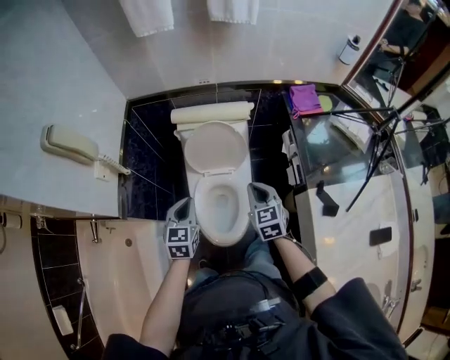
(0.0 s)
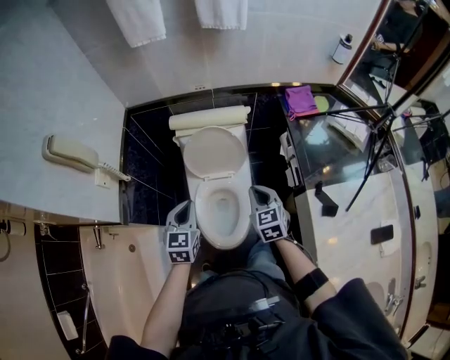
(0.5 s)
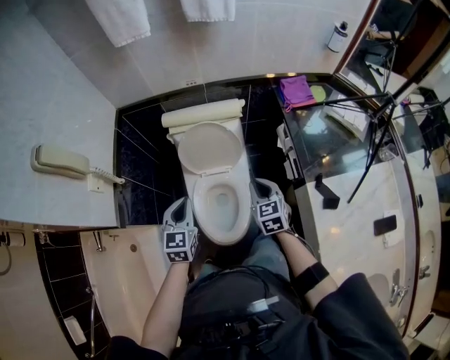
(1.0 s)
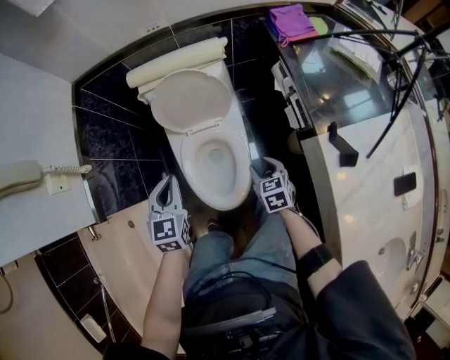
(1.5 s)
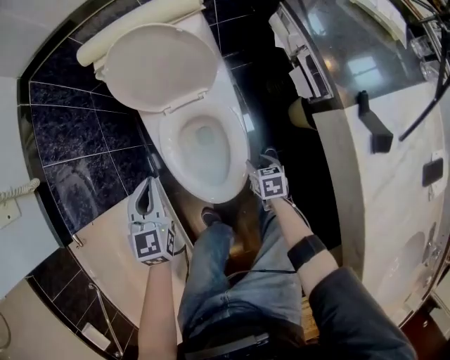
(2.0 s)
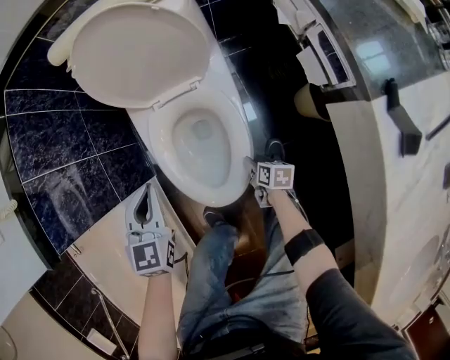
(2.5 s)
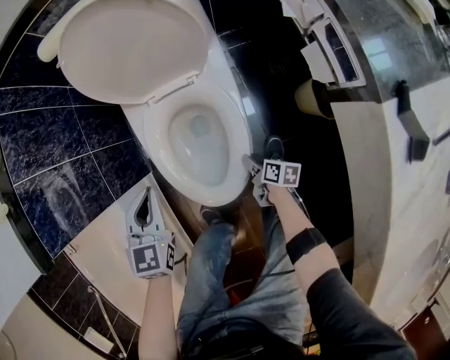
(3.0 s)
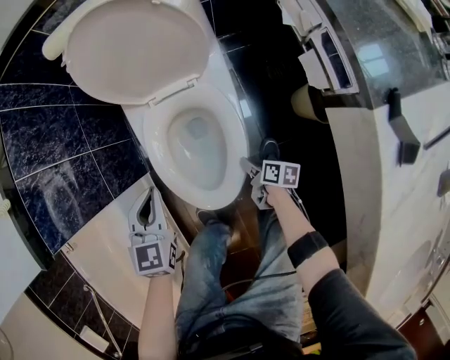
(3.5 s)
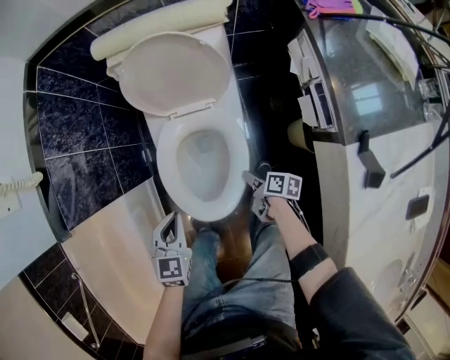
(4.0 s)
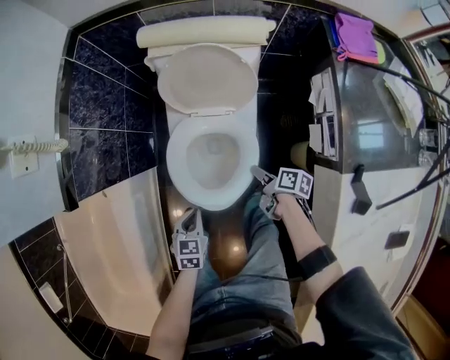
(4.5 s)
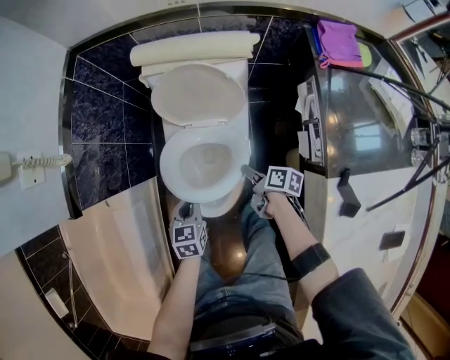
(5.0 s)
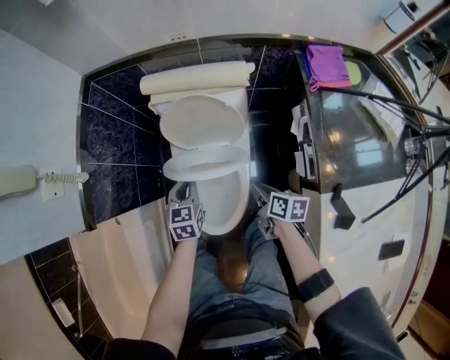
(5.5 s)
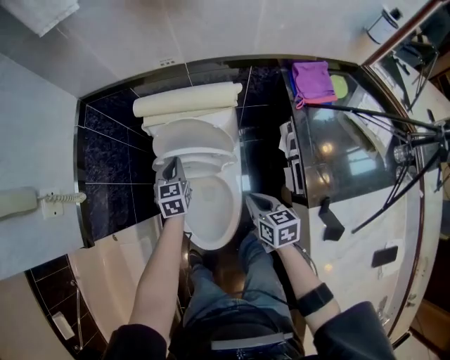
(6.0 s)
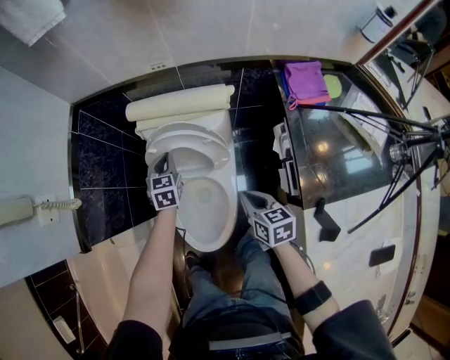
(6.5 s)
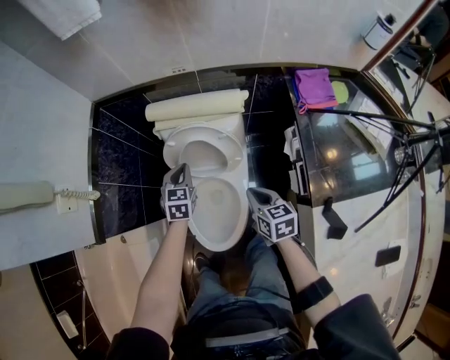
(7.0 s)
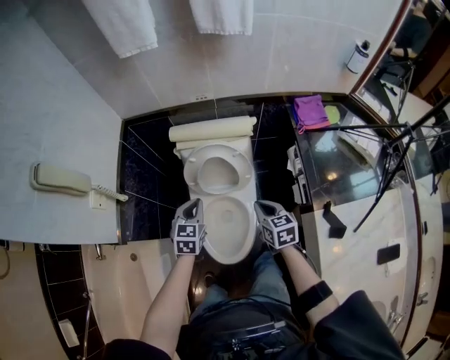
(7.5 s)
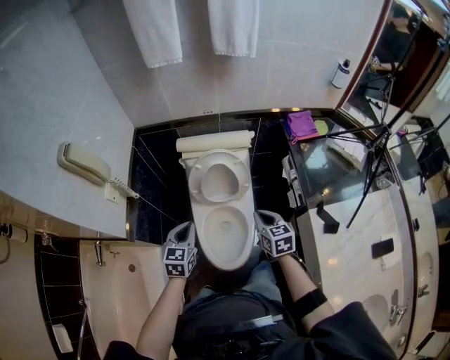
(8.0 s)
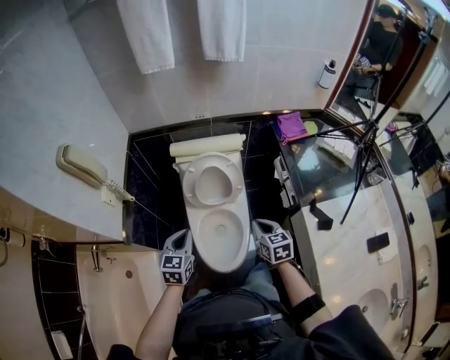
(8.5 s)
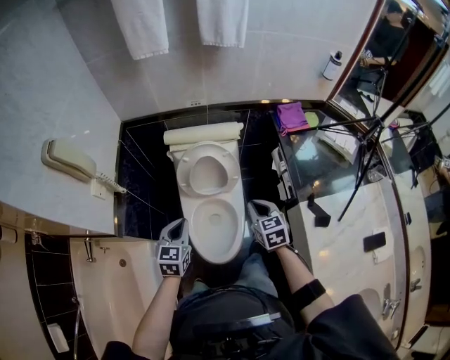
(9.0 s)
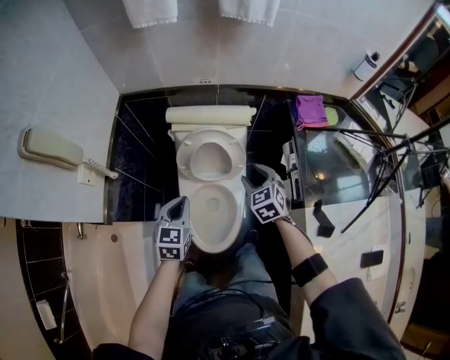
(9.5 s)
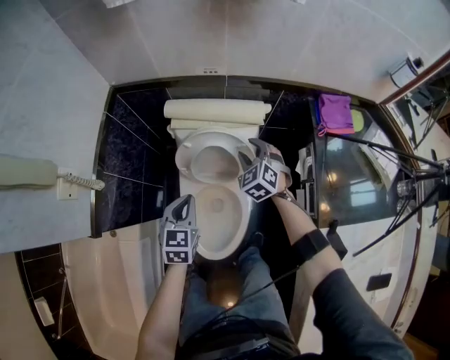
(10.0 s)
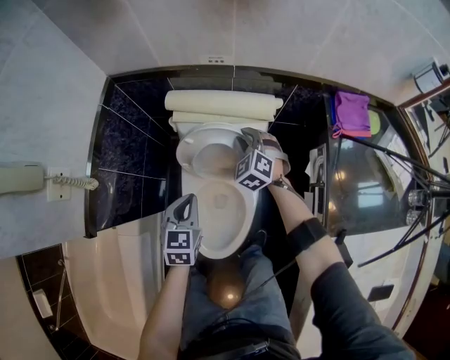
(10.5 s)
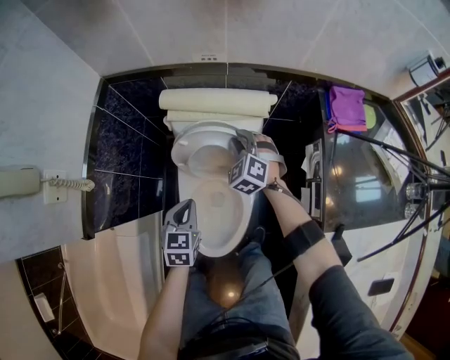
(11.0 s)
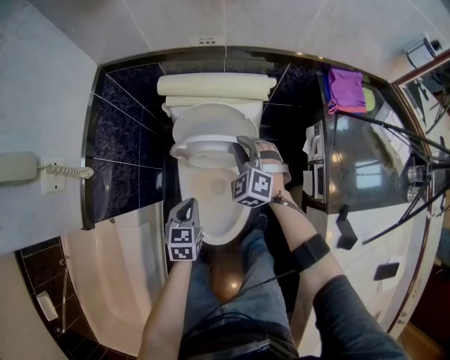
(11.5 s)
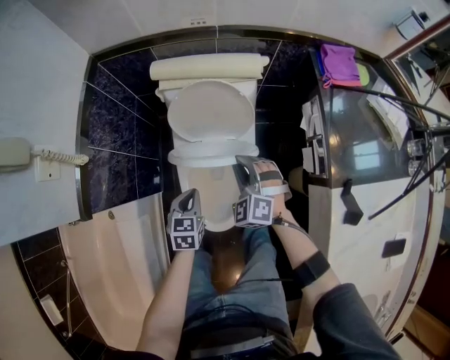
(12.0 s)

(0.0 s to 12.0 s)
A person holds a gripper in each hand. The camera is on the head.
0.0 s - 2.0 s: The right gripper shifts about 50 cm downward, turns by some 40 degrees, and opens its fingers, while the left gripper goes approximately 20 cm downward.
2.0 s - 4.0 s: The left gripper travels backward by some 10 cm. The right gripper goes downward and returns, some 10 cm each way, and swivels some 40 degrees.
4.0 s - 6.0 s: The left gripper moves forward and to the right, roughly 30 cm; the right gripper heads upward and forward, covering about 30 cm, rolls counterclockwise, seen from behind, by roughly 50 degrees, and closes up.
6.0 s - 8.0 s: The left gripper travels backward, upward and to the left by about 30 cm, while the right gripper goes approximately 15 cm upward, to the left and backward.
8.0 s - 10.0 s: The right gripper is displaced forward by some 30 cm, rotates around the line of its fingers by some 50 degrees, counterclockwise from behind, and opens up. Meanwhile the left gripper heads forward, downward and to the right, covering approximately 15 cm.
10.0 s - 12.0 s: The left gripper is displaced downward and backward by roughly 15 cm. The right gripper travels backward by about 15 cm, and closes its fingers.

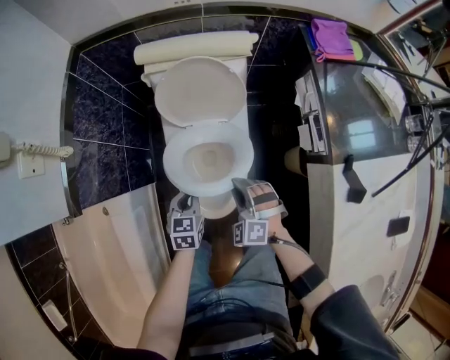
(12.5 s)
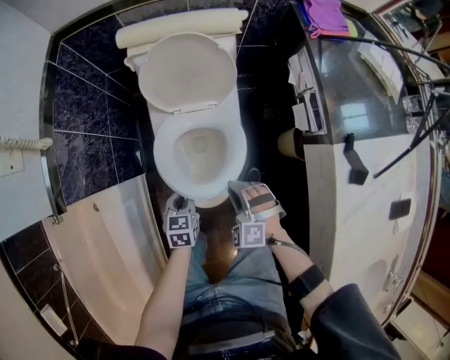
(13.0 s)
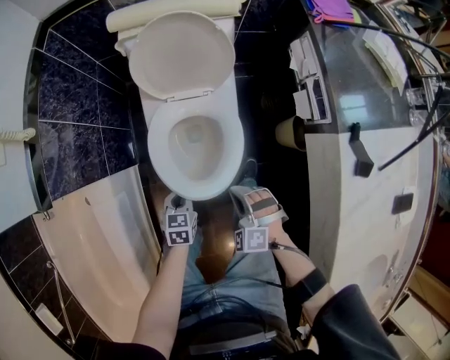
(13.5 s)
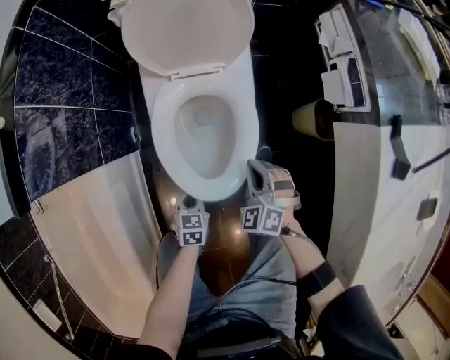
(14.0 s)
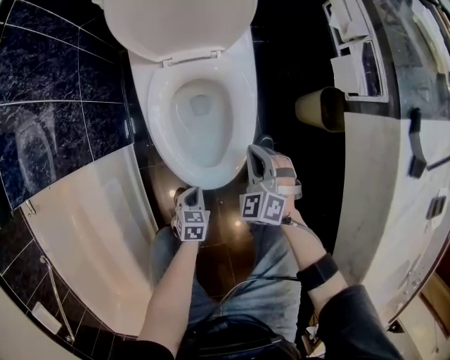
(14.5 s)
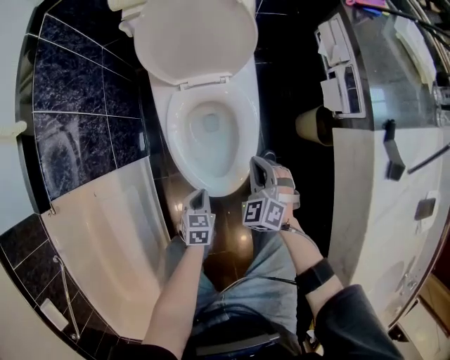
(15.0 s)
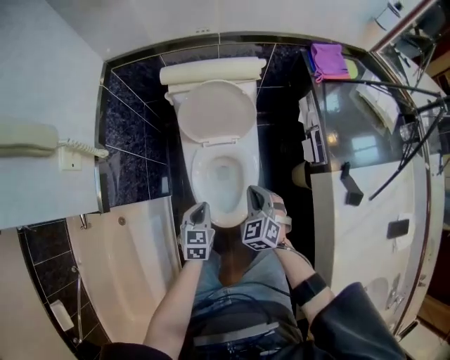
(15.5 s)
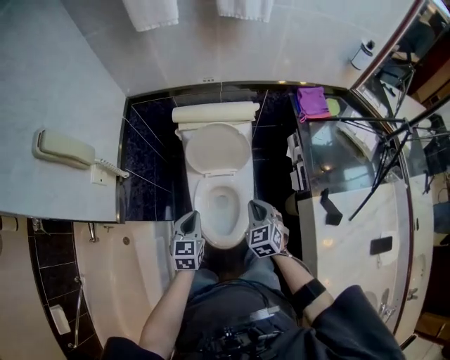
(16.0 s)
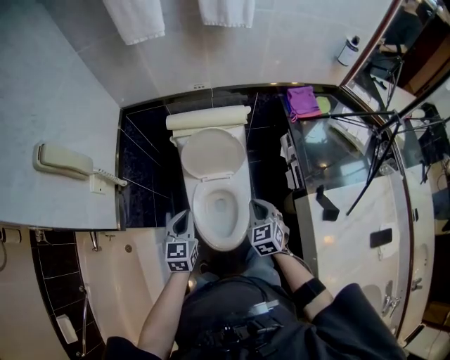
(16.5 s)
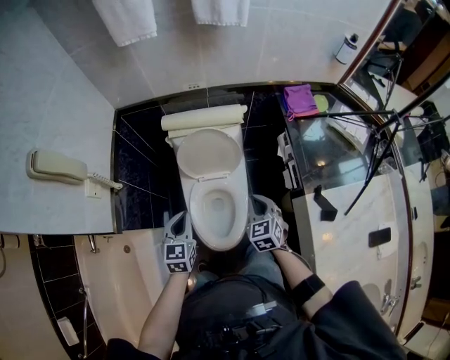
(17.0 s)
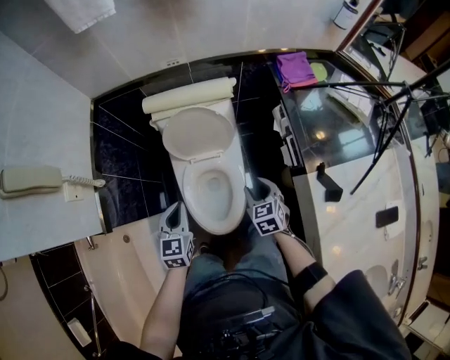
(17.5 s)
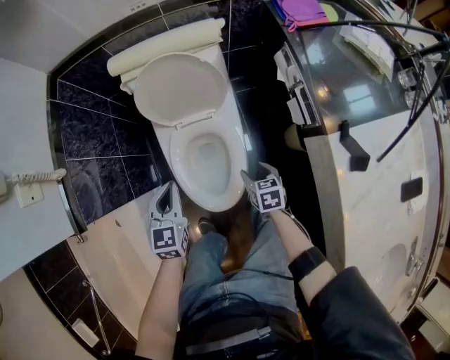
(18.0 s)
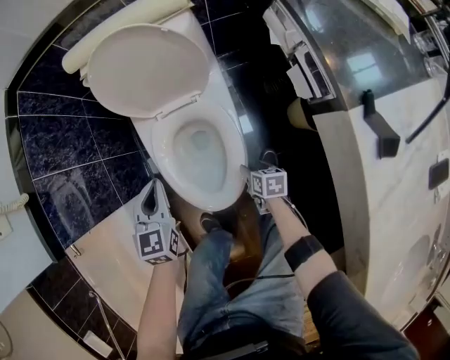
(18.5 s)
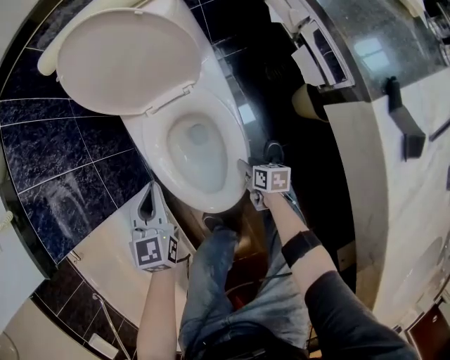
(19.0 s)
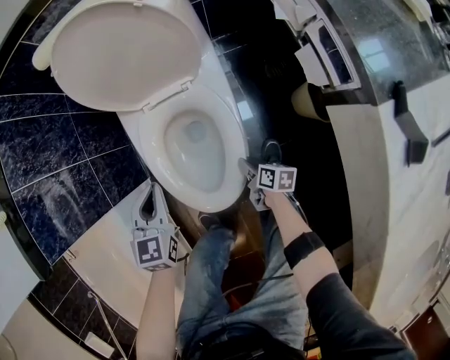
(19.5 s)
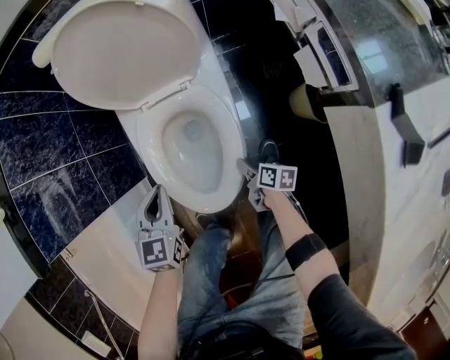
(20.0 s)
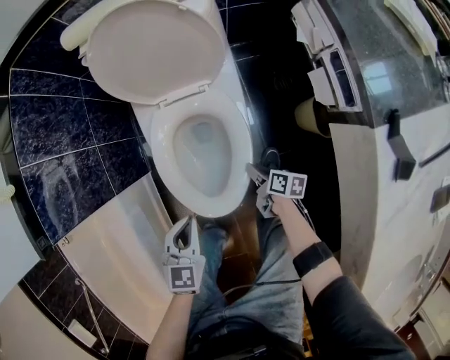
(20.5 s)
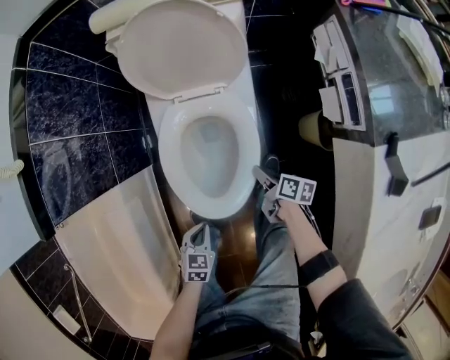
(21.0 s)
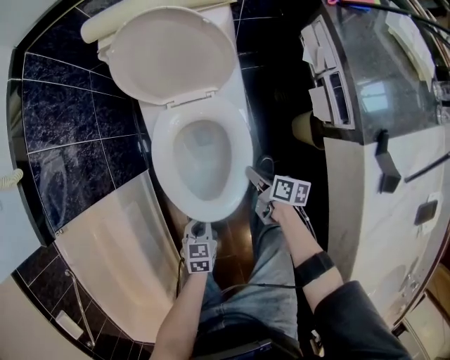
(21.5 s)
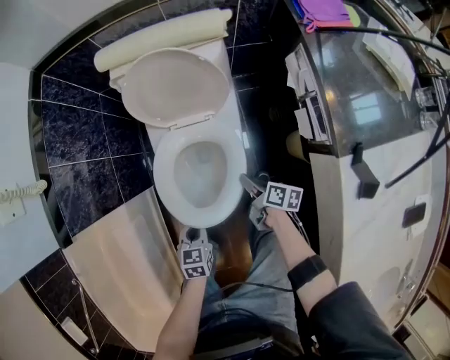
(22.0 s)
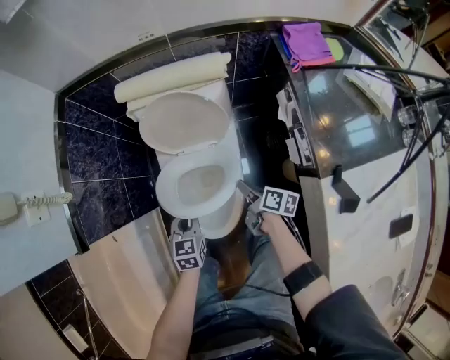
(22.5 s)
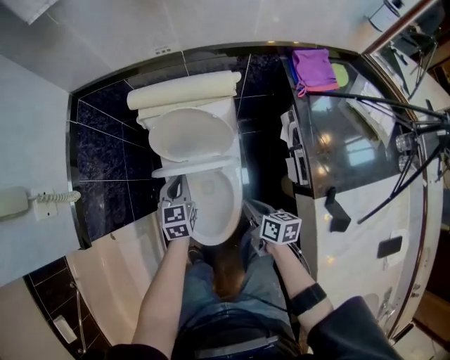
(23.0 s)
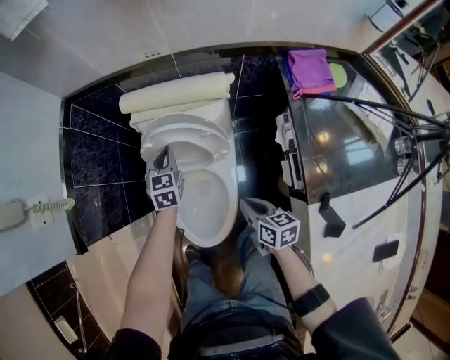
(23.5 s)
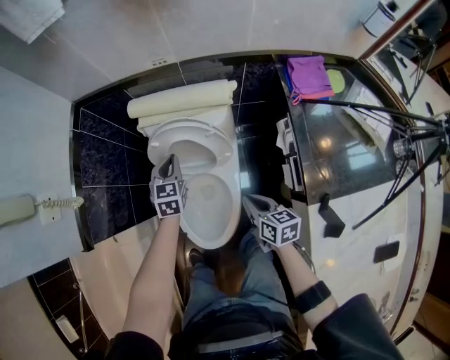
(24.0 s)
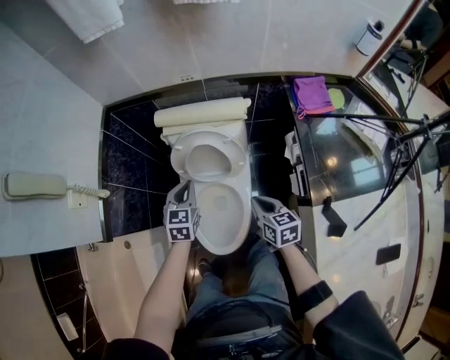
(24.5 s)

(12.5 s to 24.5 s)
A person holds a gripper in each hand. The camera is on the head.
12.5 s - 14.5 s: The right gripper moves downward, approximately 20 cm; the left gripper moves downward and backward, approximately 35 cm, and changes its angle by about 20 degrees.
14.5 s - 16.5 s: The grippers both shift upward by roughly 50 cm. The left gripper tilts its fingers roughly 30 degrees upward. Meanwhile the right gripper changes its angle by some 30 degrees.
16.5 s - 18.5 s: The right gripper shifts approximately 50 cm downward, twists approximately 50 degrees clockwise, seen from behind, and opens its fingers. Meanwhile the left gripper heads downward, covering about 25 cm.
18.5 s - 20.5 s: The right gripper swivels about 20 degrees, and closes, while the left gripper moves backward, some 15 cm.
20.5 s - 22.5 s: The right gripper travels upward and forward by about 25 cm, while the left gripper heads forward and upward, covering approximately 15 cm.
22.5 s - 24.5 s: The left gripper moves upward and forward, some 20 cm; the right gripper goes roughly 15 cm upward, and rotates around the line of its fingers by roughly 50 degrees, counterclockwise from behind.

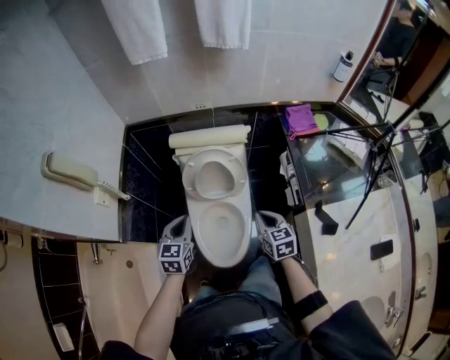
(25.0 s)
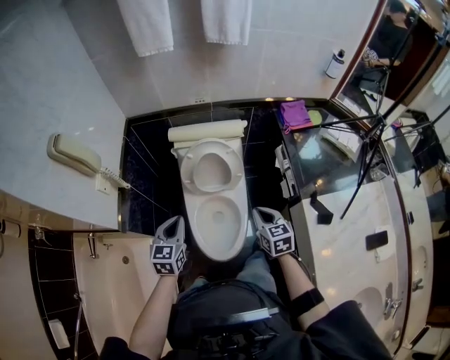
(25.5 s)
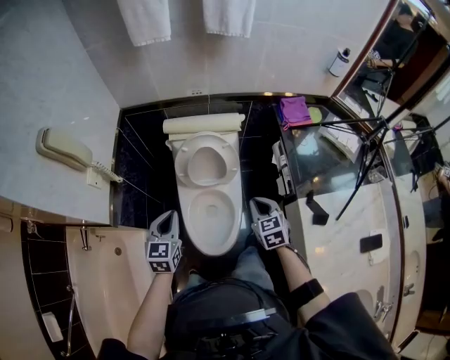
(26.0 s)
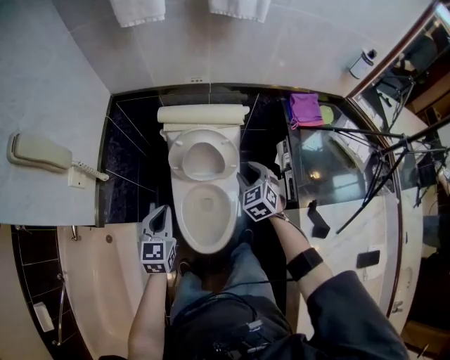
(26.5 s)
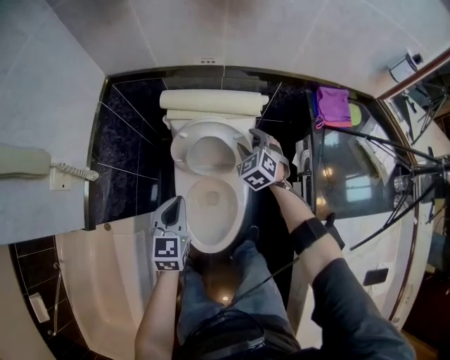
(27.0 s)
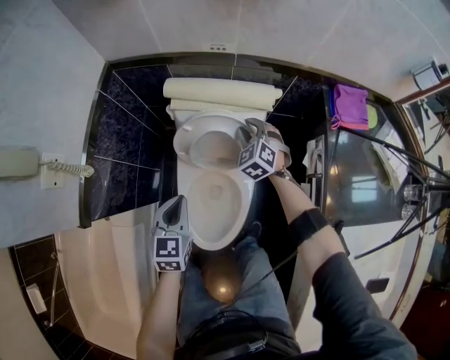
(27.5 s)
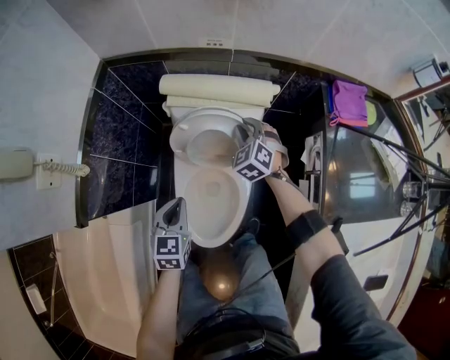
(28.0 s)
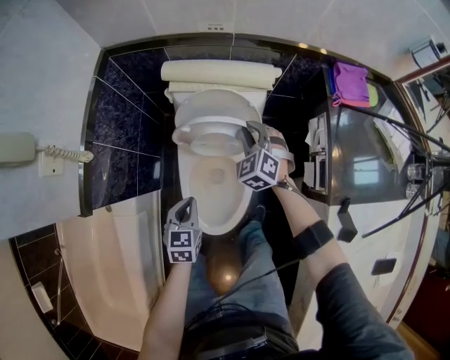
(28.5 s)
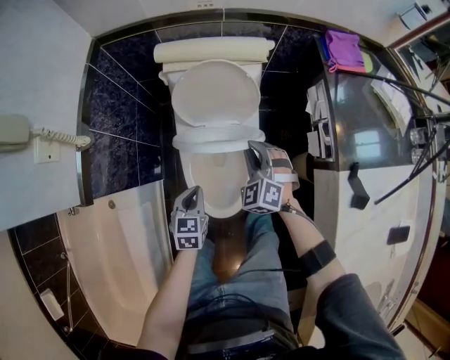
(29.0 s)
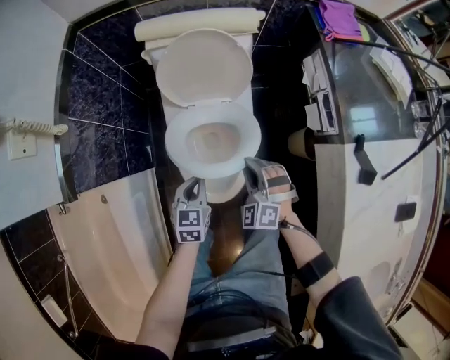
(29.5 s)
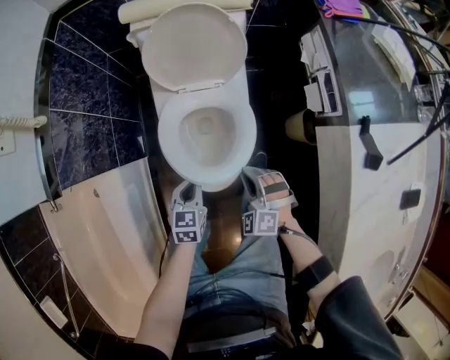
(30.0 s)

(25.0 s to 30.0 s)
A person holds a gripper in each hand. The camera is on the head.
25.0 s - 27.5 s: The left gripper is displaced downward and forward by roughly 15 cm. The right gripper heads forward and downward, covering roughly 35 cm, rolls counterclockwise, seen from behind, by approximately 50 degrees, and opens its fingers.
27.5 s - 30.0 s: The right gripper is displaced backward by some 40 cm, while the left gripper heads downward and backward, covering roughly 30 cm.
